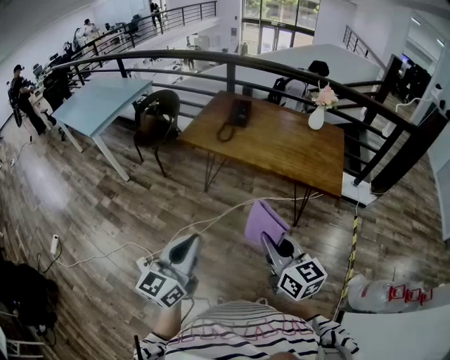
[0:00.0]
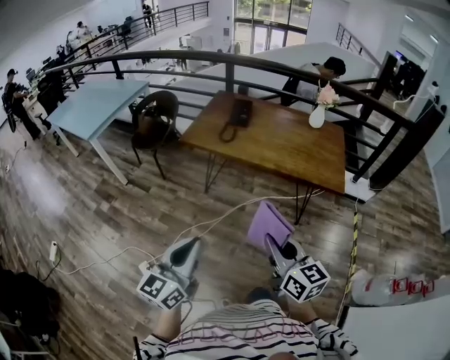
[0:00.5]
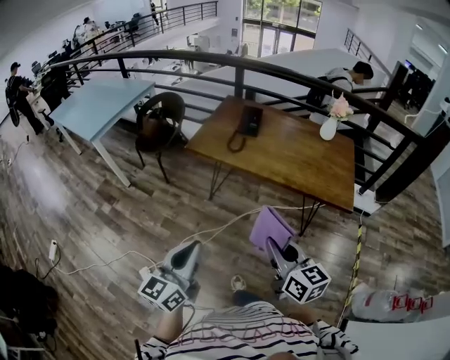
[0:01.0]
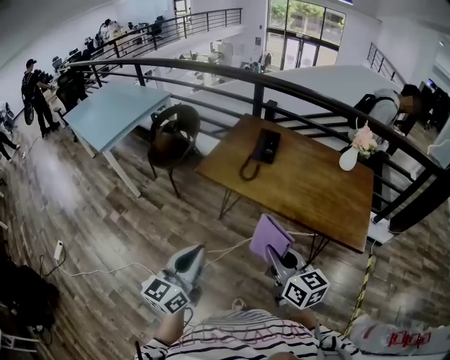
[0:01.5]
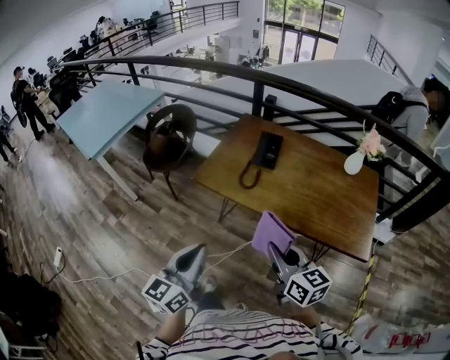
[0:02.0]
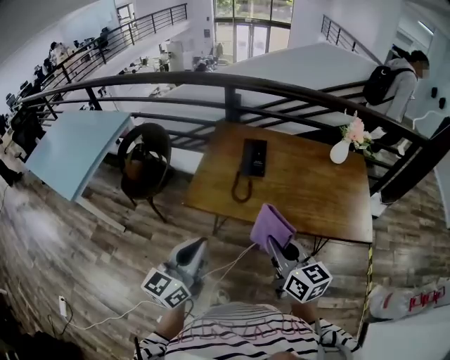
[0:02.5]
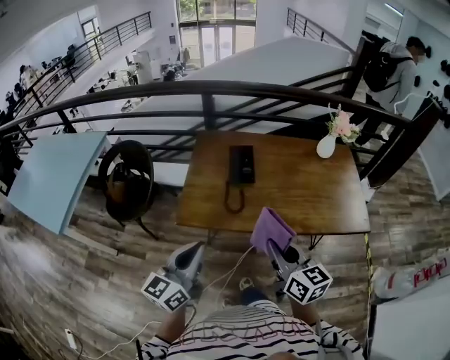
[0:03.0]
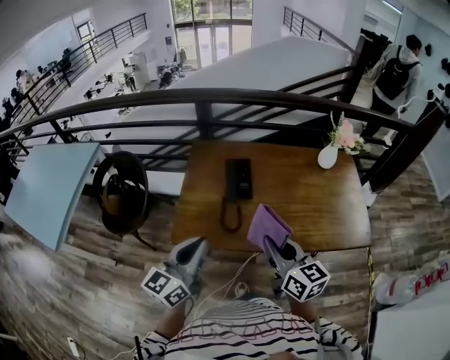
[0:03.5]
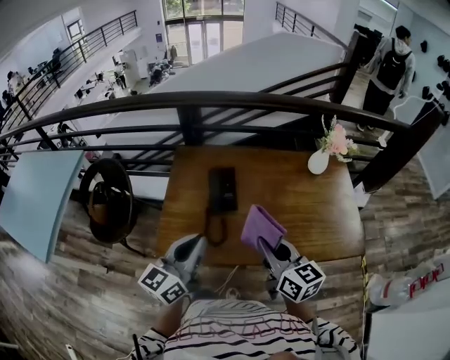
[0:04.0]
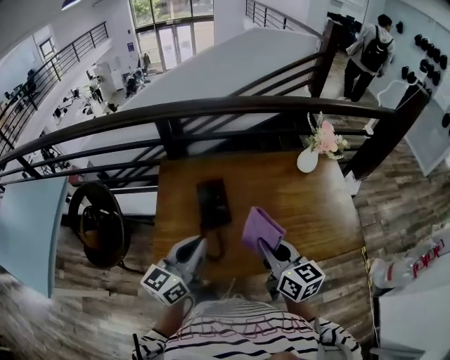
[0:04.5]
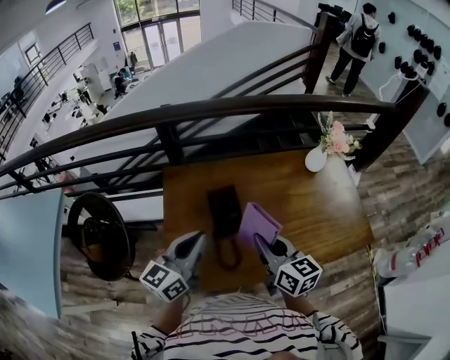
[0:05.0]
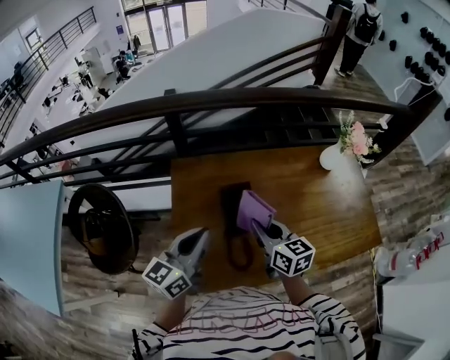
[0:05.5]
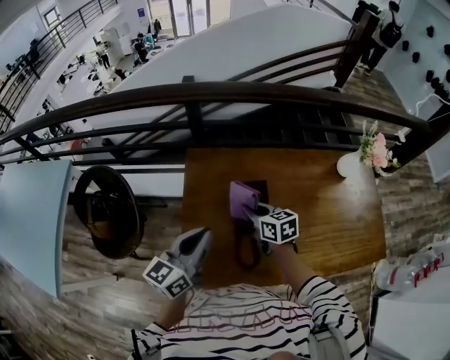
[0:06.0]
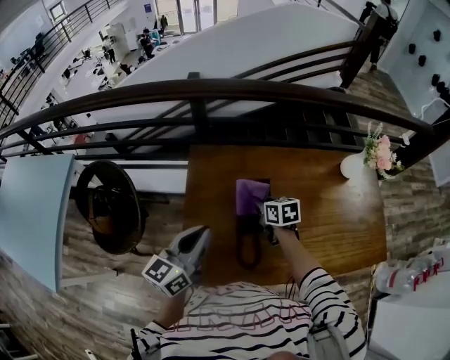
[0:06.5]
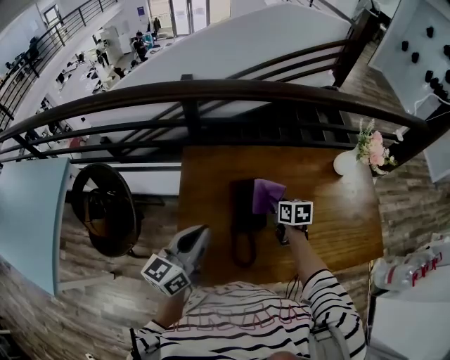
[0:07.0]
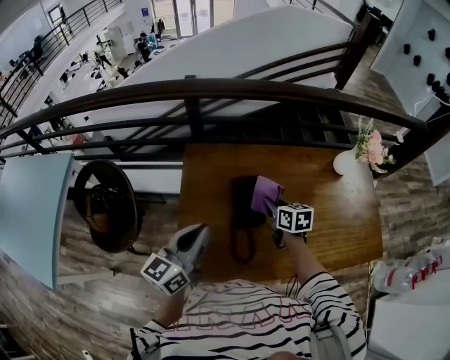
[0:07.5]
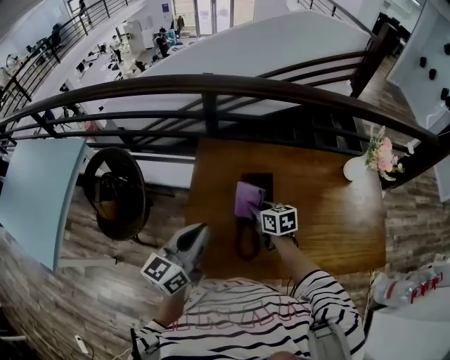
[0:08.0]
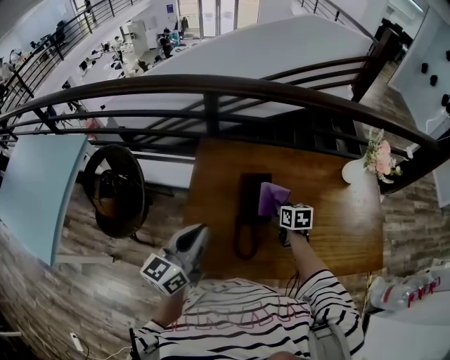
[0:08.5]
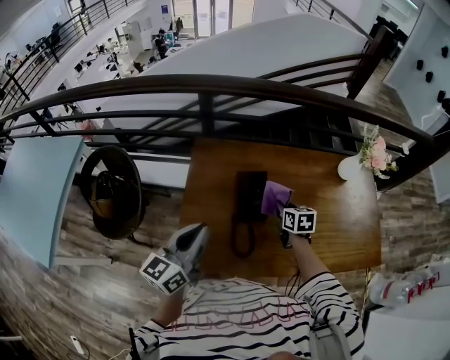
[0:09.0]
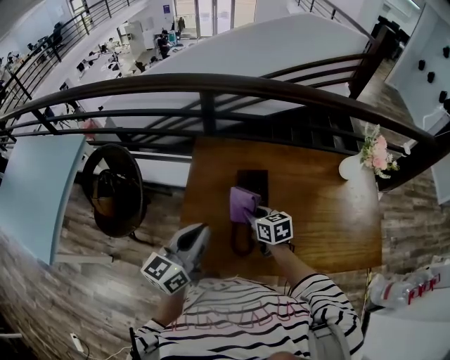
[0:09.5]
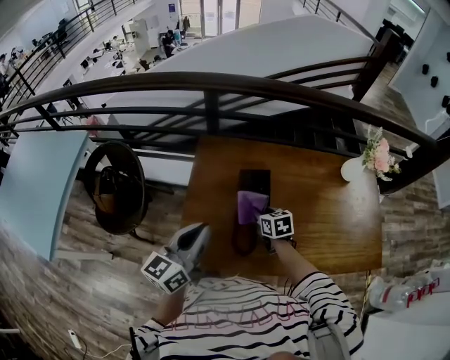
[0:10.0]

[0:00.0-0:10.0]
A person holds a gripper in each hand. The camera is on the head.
0:00.0 to 0:02.0: Both grippers travel together forward, about 35 cm.
0:02.0 to 0:04.0: The right gripper ends up roughly 35 cm from where it was, and changes its angle by about 20 degrees, while the left gripper shifts by some 40 cm, and rotates about 30 degrees.
0:04.0 to 0:06.0: The right gripper goes some 40 cm forward, to the left and downward, and turns by some 20 degrees; the left gripper moves forward and to the left, roughly 30 cm.
0:06.0 to 0:08.0: The right gripper moves about 10 cm to the right and comes back, while the left gripper moves backward, about 5 cm.
0:08.0 to 0:10.0: The right gripper goes roughly 5 cm downward, and reaches approximately 10 cm to the right, then returns.

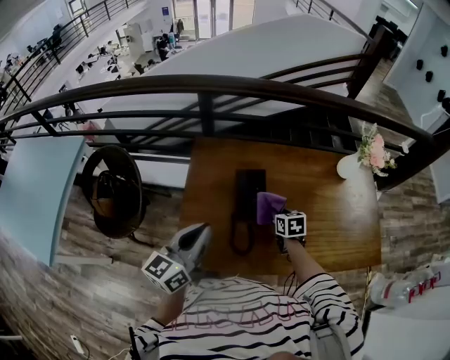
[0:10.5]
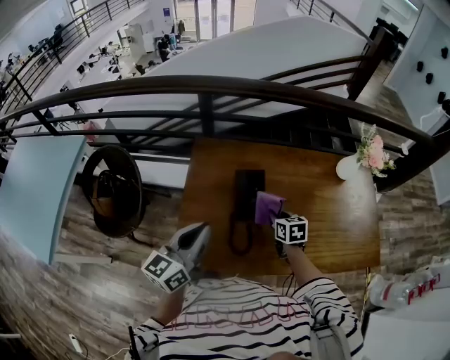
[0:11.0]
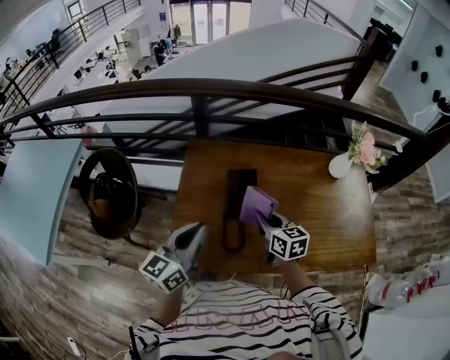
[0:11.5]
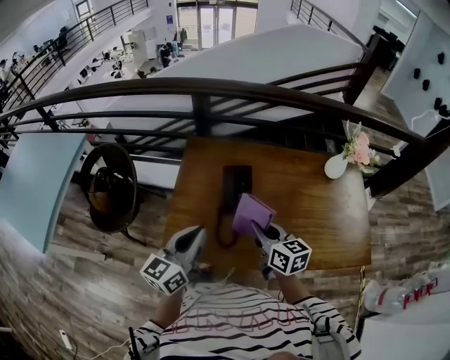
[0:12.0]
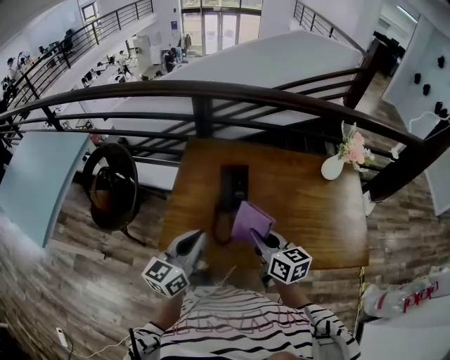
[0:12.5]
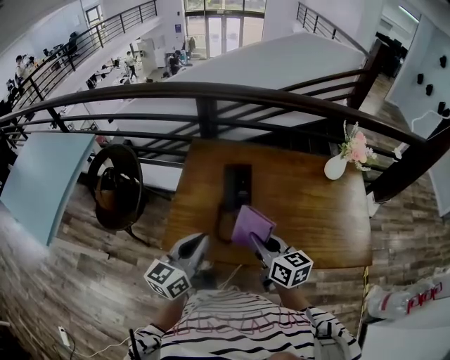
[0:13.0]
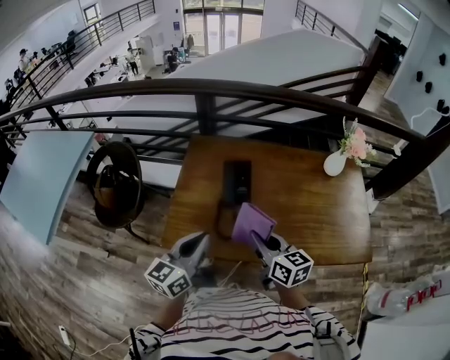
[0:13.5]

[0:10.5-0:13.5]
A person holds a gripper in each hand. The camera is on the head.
0:10.5 to 0:12.0: The left gripper shifts about 10 cm backward and to the right. Meanwhile the right gripper travels upward and backward by approximately 20 cm, and changes its angle by about 30 degrees.
0:12.0 to 0:13.5: The grippers both shift backward by about 10 cm.

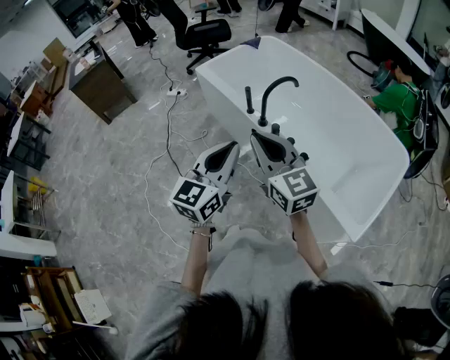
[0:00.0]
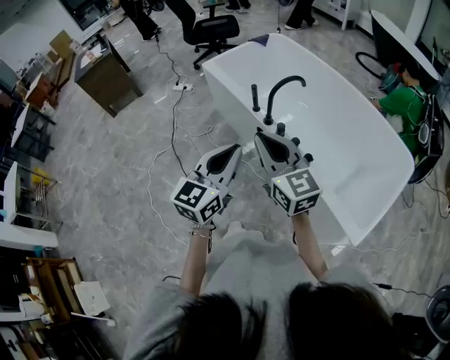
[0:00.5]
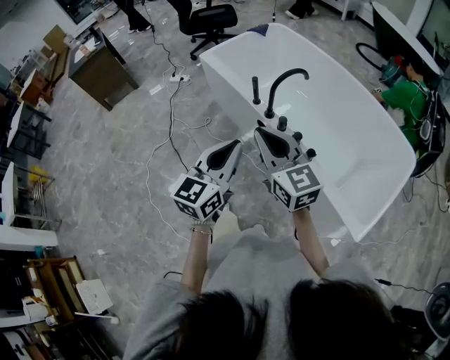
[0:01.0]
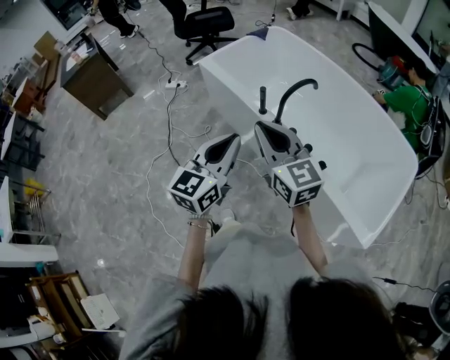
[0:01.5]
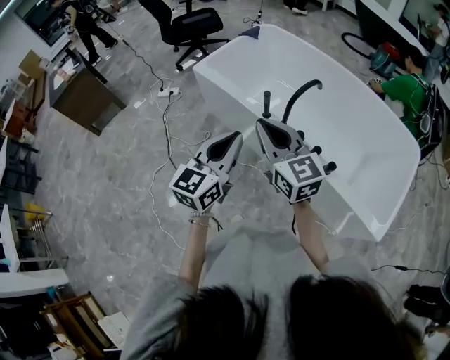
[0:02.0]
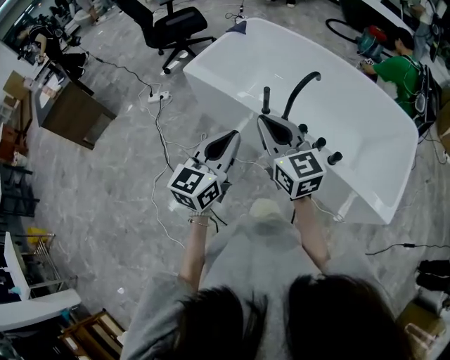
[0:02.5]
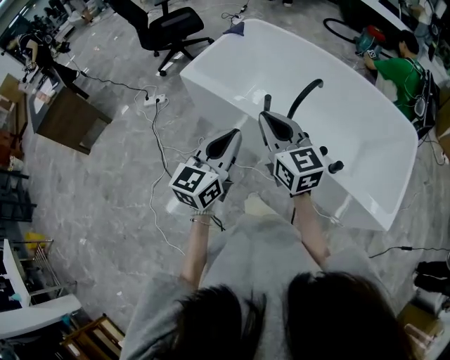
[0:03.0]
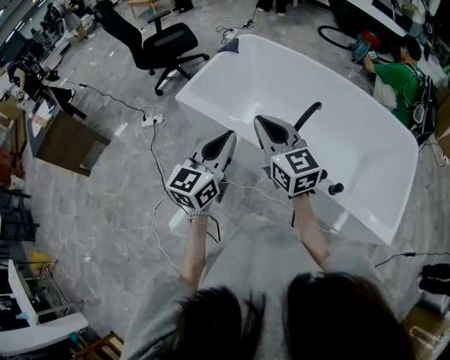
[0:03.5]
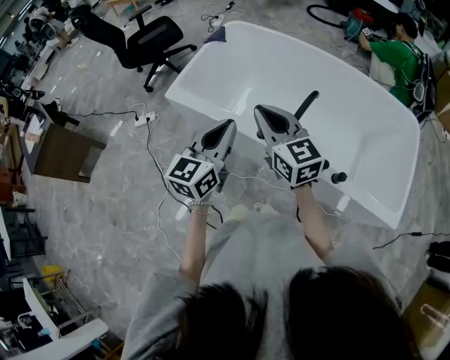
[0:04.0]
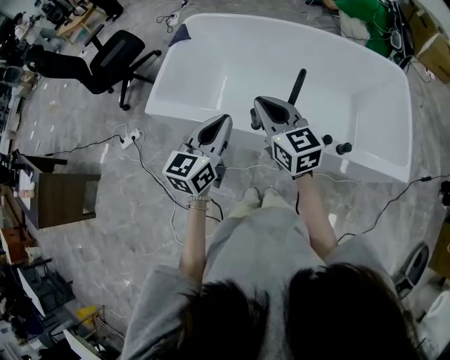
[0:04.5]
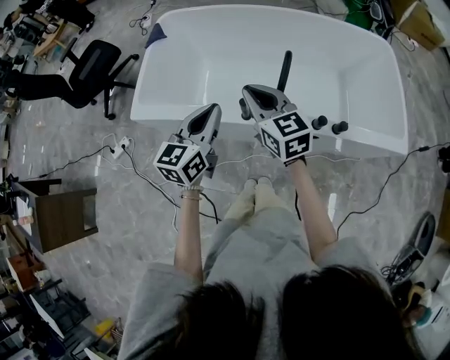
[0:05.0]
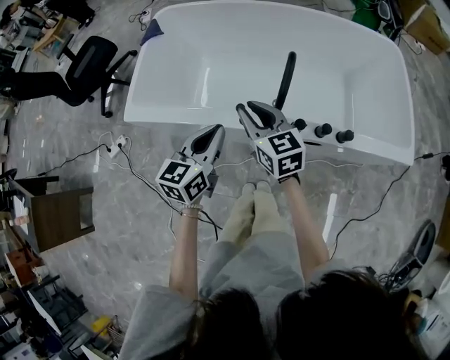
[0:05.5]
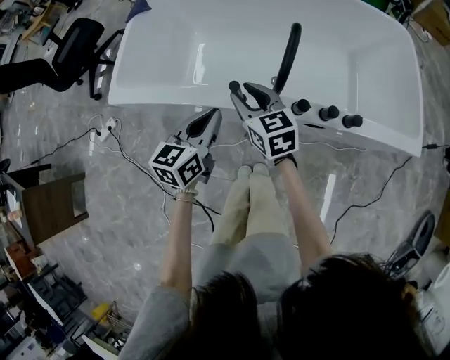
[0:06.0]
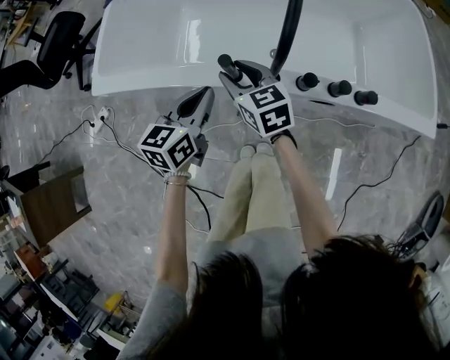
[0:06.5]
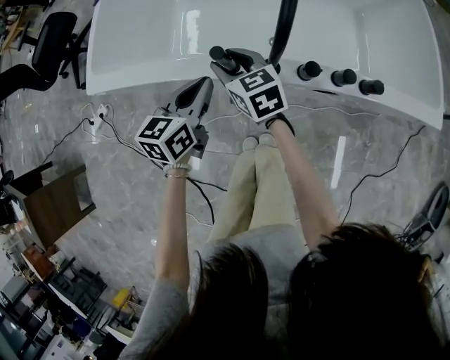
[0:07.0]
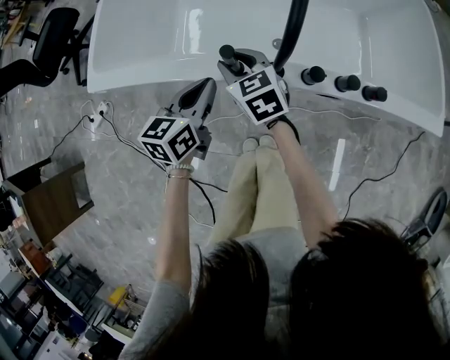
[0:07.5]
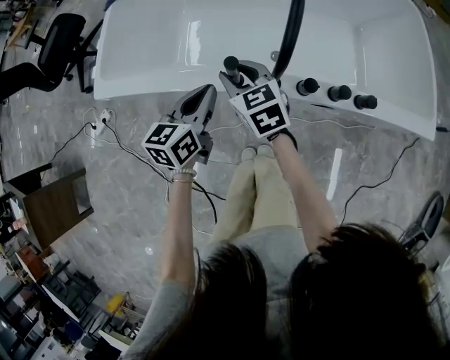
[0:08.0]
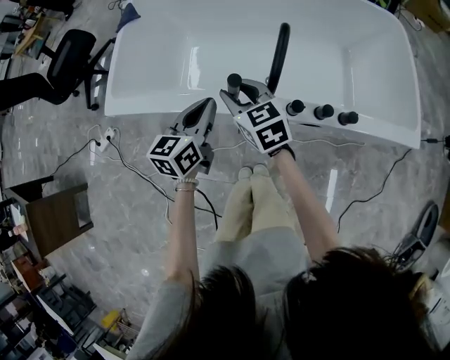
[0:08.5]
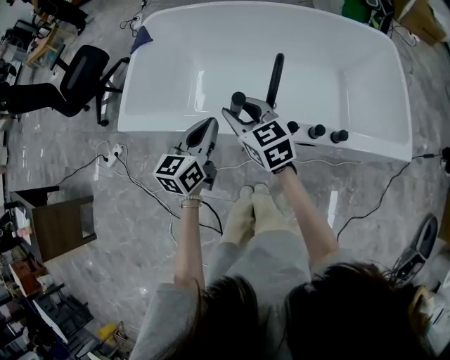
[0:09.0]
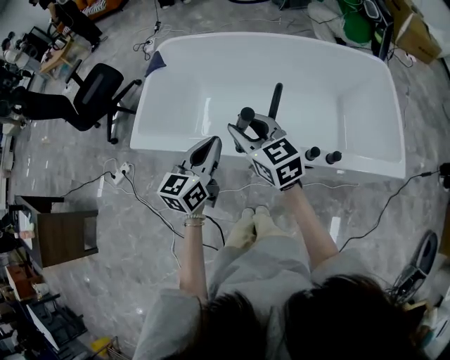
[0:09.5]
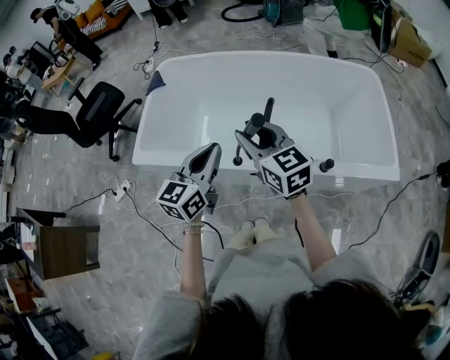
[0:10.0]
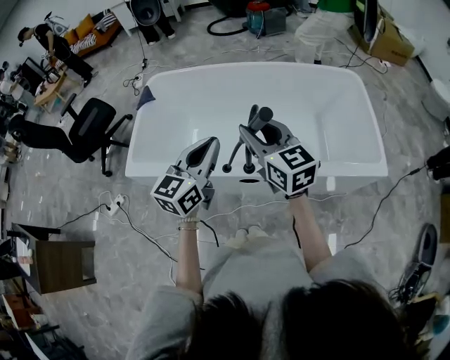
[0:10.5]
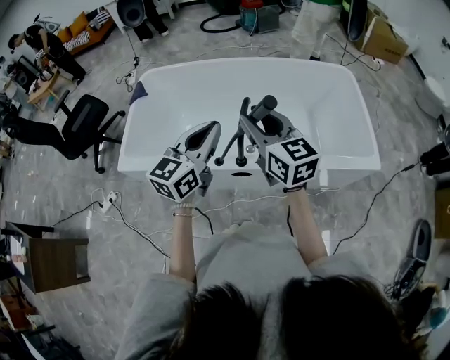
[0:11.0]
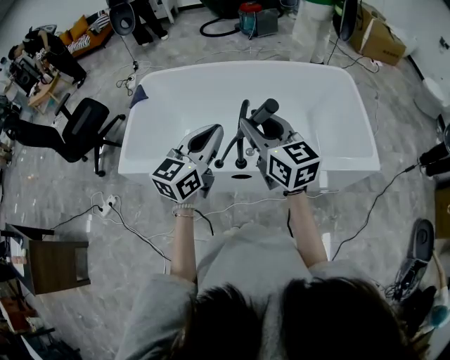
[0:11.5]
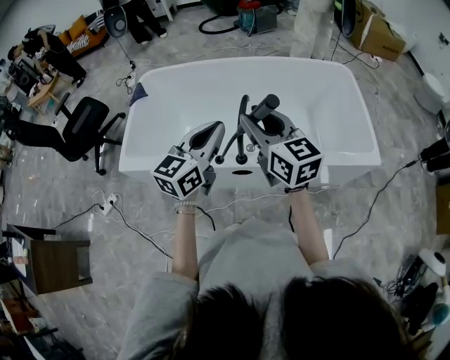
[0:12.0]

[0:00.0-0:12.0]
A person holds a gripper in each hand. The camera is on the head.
0:00.0 to 0:02.0: The two grippers go some 20 cm forward and to the left.
0:02.0 to 0:04.0: The grippers both shift forward by approximately 25 cm.
0:04.0 to 0:06.0: The two grippers go some 25 cm downward. The right gripper rotates roughly 30 degrees, and opens up. Meanwhile the left gripper turns by approximately 30 degrees.
0:06.0 to 0:08.0: The two grippers go about 5 cm downward.
0:08.0 to 0:10.0: Both grippers move upward, roughly 30 cm.
0:10.0 to 0:12.0: Both grippers travel together to the right and upward, roughly 10 cm.

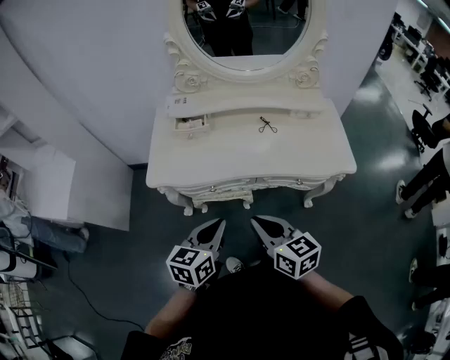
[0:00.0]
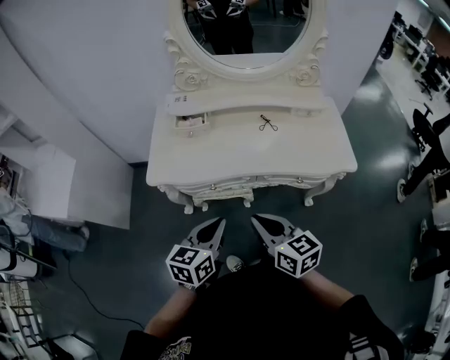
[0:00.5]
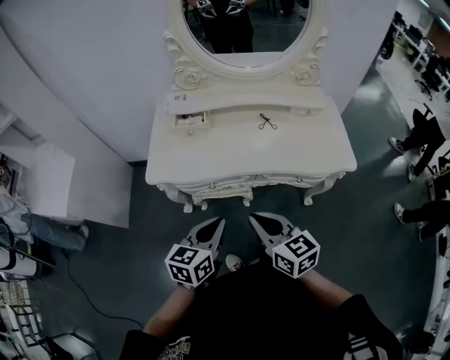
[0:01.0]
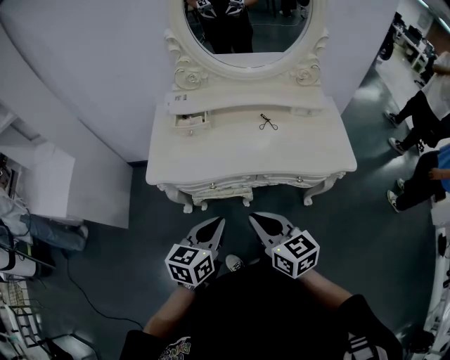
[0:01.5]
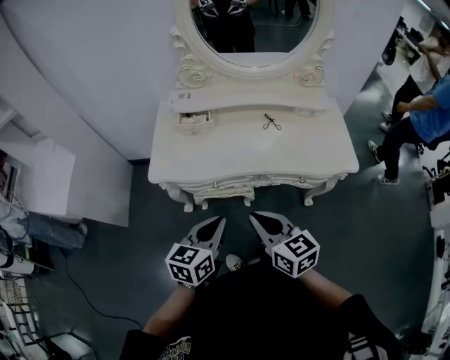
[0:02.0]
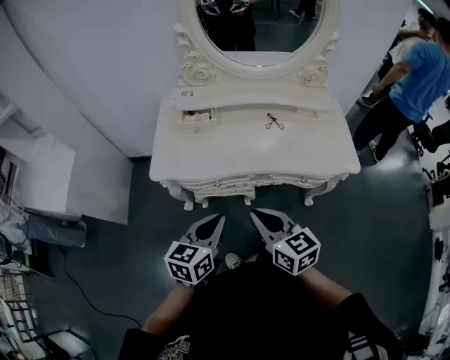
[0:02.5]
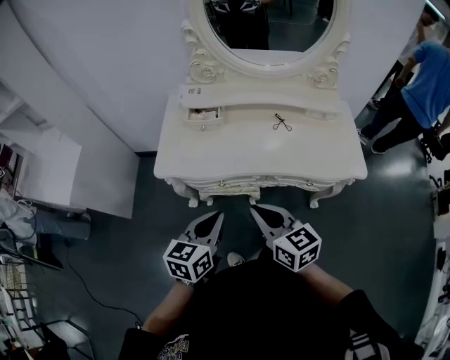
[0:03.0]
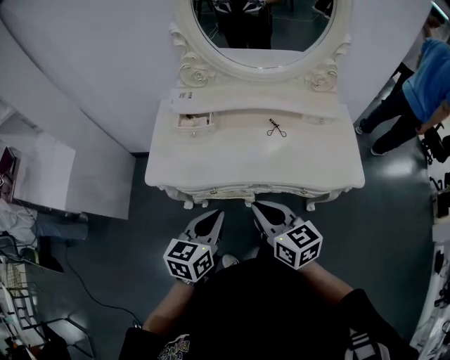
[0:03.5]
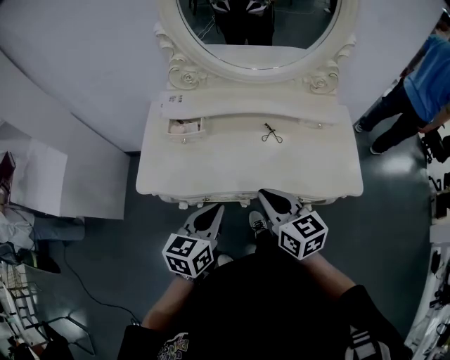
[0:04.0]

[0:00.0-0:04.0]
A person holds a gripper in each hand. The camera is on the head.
0:00.0 to 0:02.0: The grippers stay close to where they were, moving slightly.
0:02.0 to 0:04.0: Both grippers move forward and to the right, some 15 cm.
